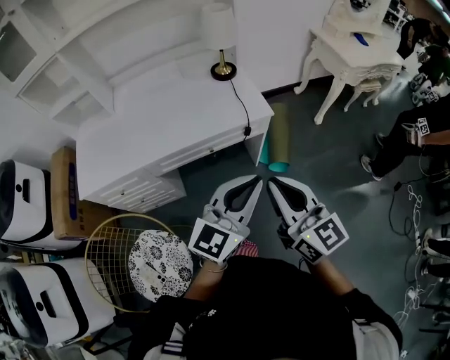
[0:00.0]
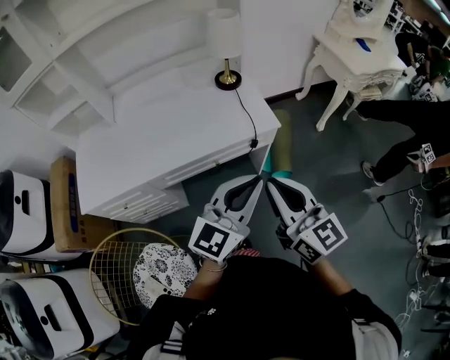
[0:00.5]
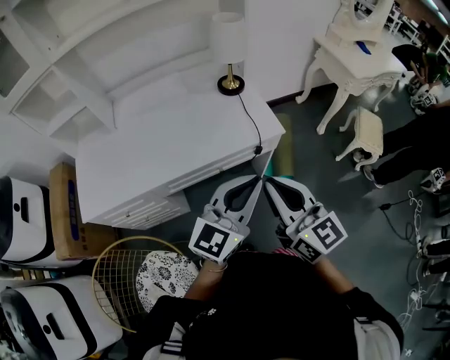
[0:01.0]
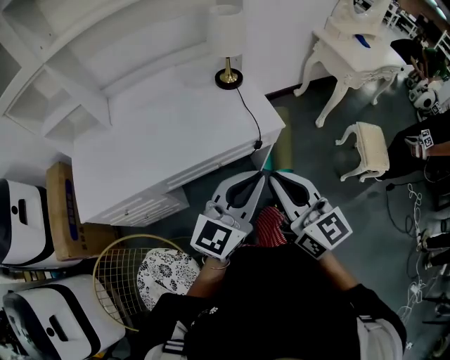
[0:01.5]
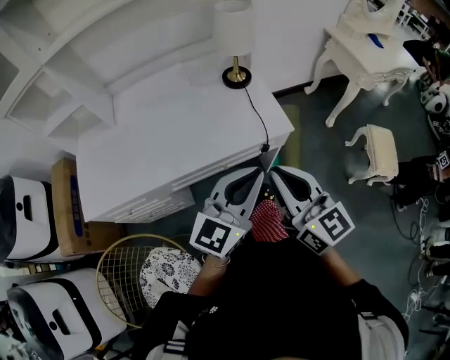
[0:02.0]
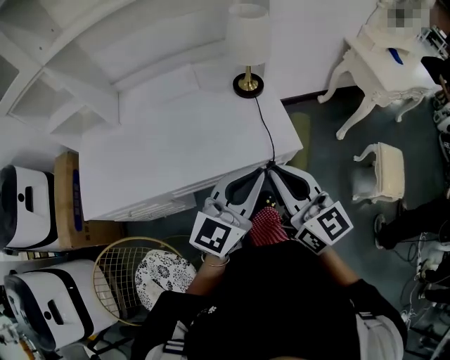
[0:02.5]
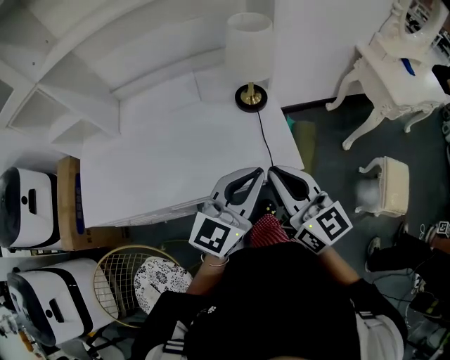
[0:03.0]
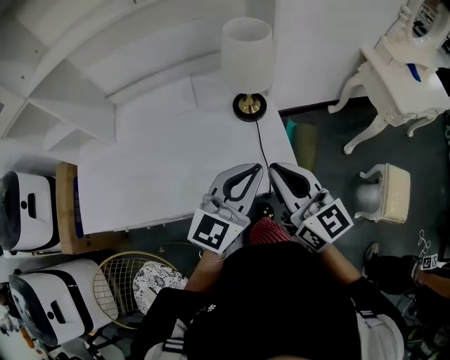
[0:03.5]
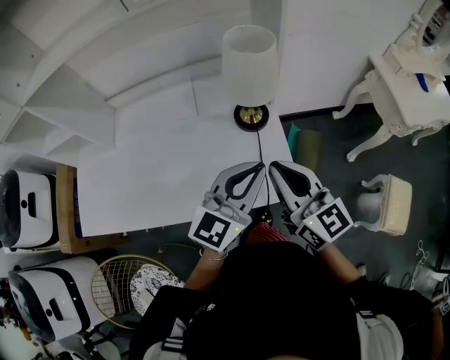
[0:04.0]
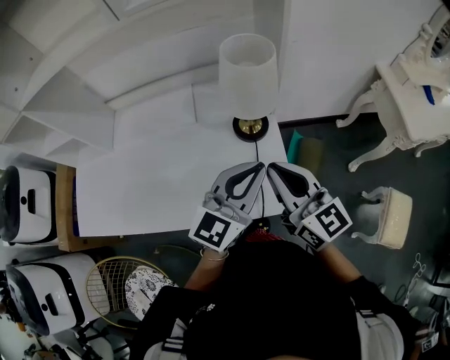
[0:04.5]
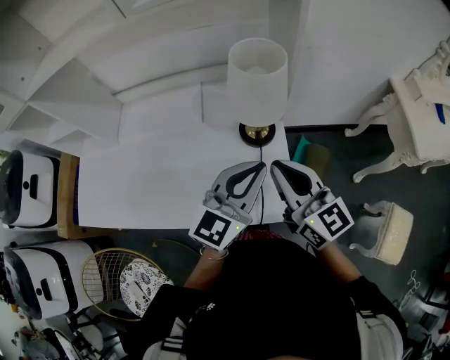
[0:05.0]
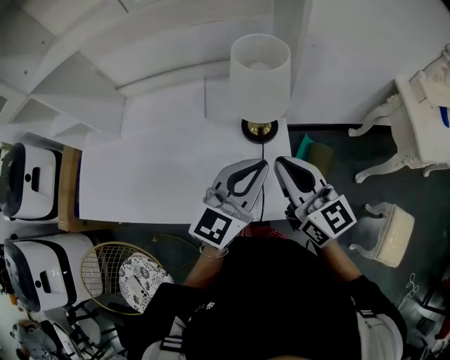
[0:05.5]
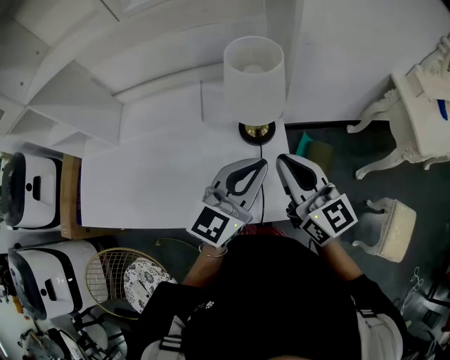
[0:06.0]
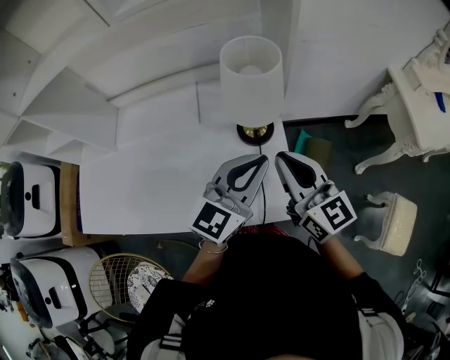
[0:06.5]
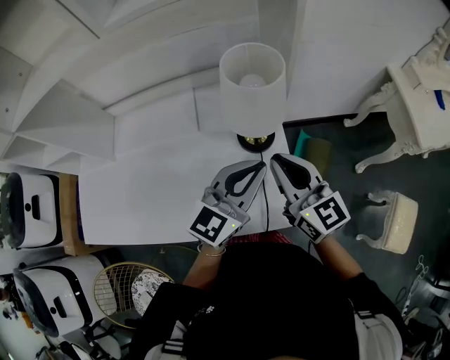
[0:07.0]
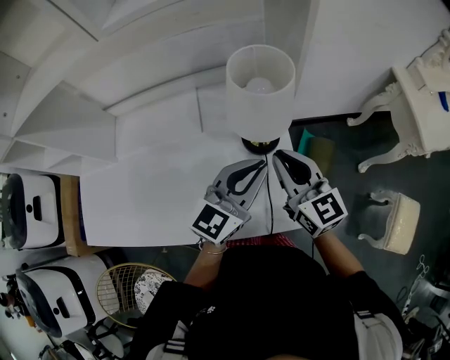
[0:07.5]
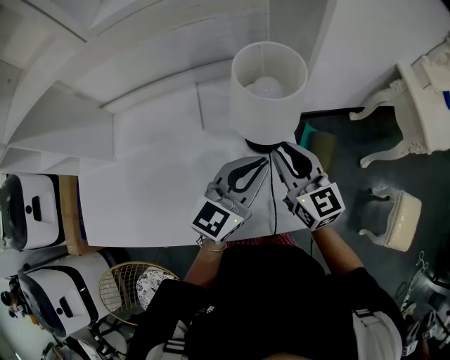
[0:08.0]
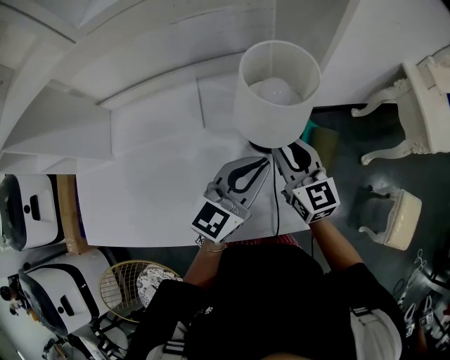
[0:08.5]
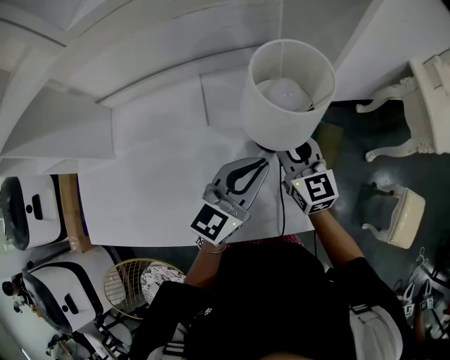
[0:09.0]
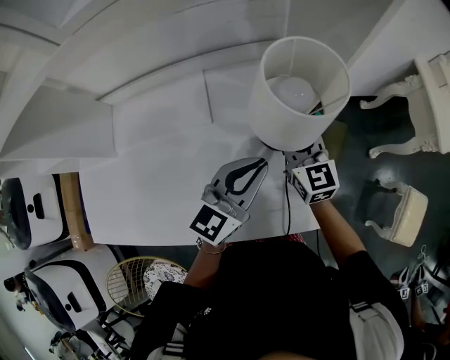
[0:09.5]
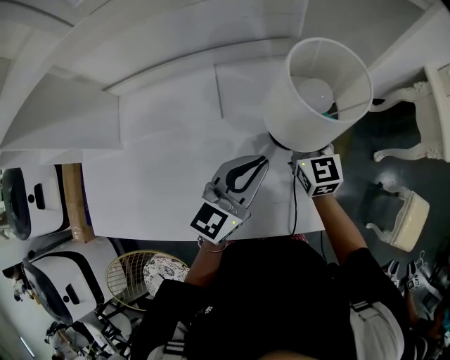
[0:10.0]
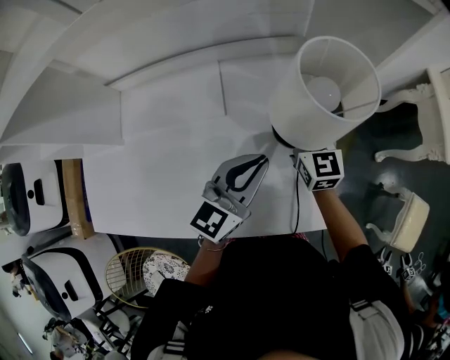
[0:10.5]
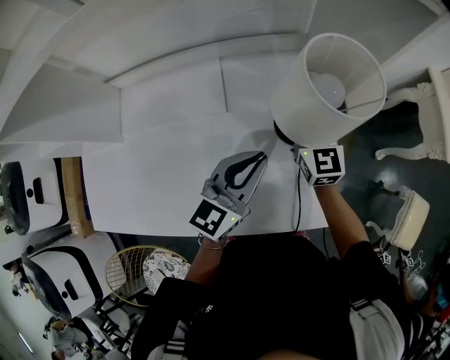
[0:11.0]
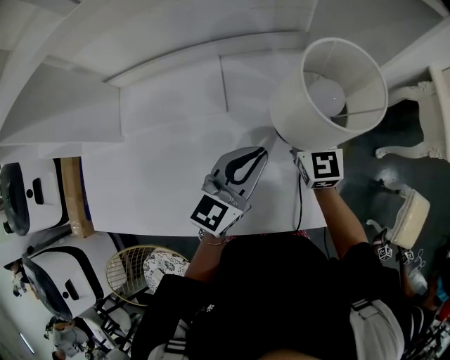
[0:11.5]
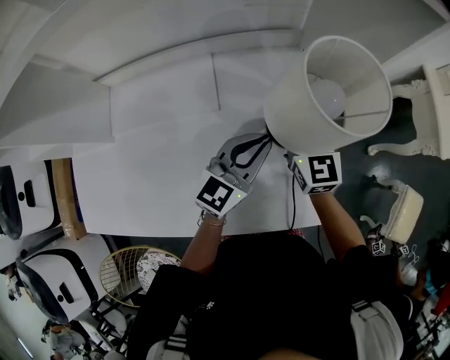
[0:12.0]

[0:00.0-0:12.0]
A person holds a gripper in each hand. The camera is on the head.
0:00.0 to 0:02.0: Both grippers travel together forward and to the left, approximately 15 cm.
0:02.0 to 0:04.0: Both grippers move forward, some 25 cm.
0:04.0 to 0:06.0: The grippers both shift forward by approximately 5 cm.
0:06.0 to 0:08.0: Both grippers travel together forward and downward, approximately 10 cm.
0:08.0 to 0:10.0: The left gripper shifts some 5 cm to the left. The right gripper heads forward and downward, covering some 10 cm.
0:10.0 to 0:12.0: The left gripper ends up about 5 cm from where it was.

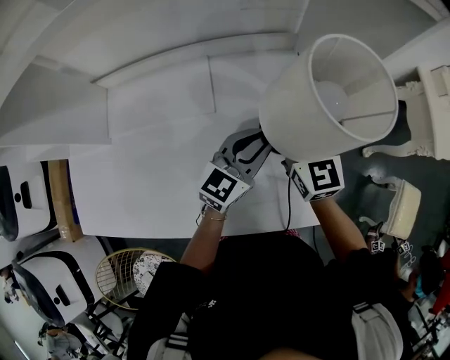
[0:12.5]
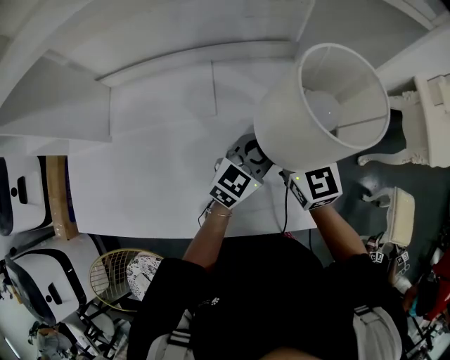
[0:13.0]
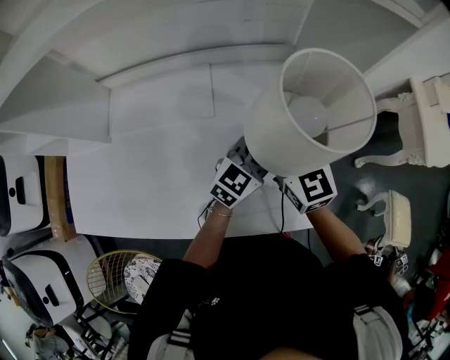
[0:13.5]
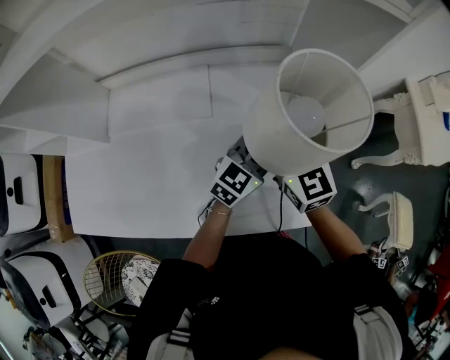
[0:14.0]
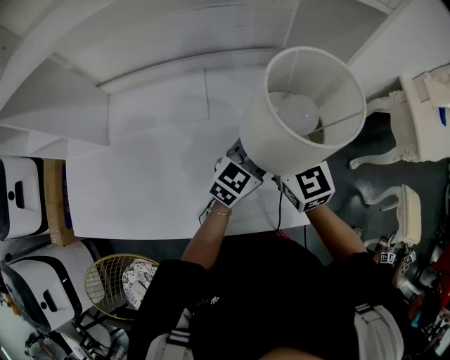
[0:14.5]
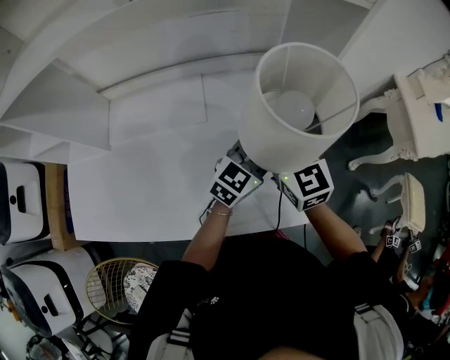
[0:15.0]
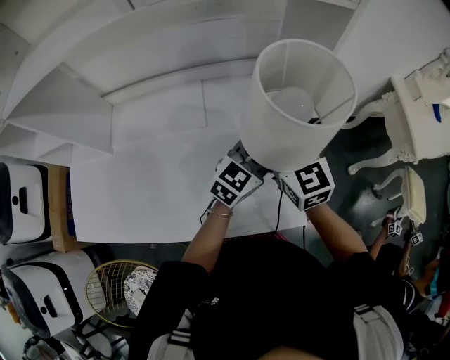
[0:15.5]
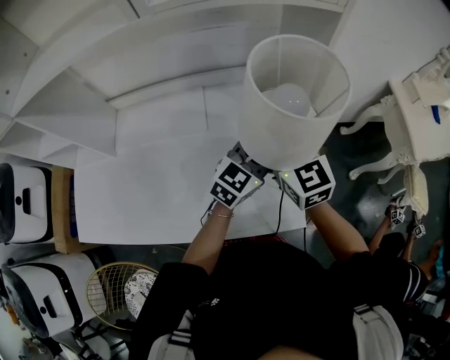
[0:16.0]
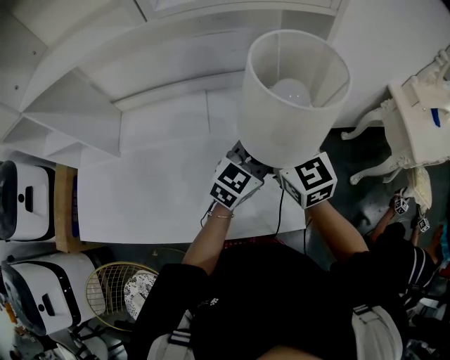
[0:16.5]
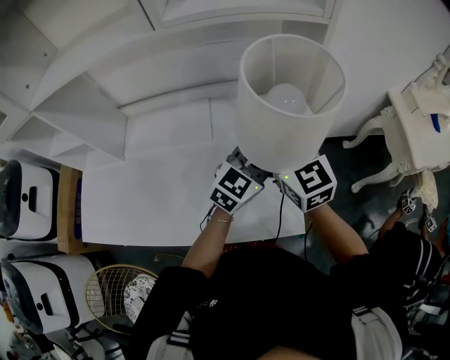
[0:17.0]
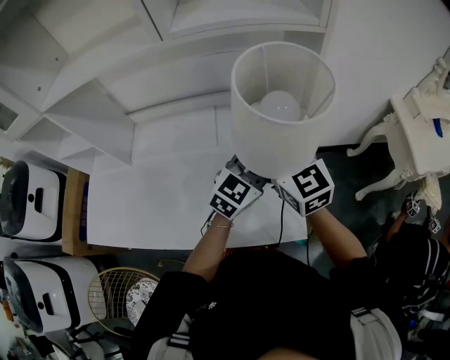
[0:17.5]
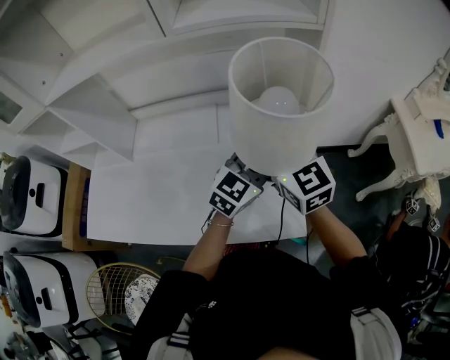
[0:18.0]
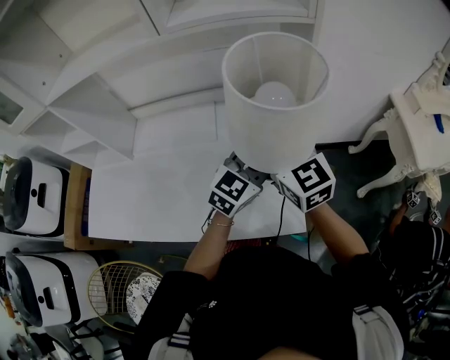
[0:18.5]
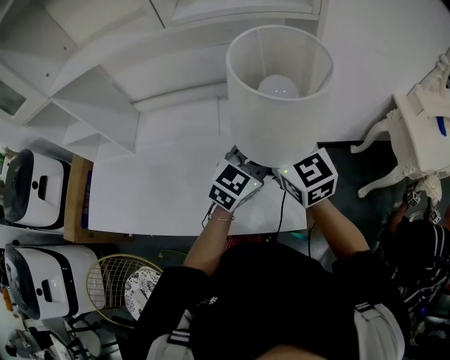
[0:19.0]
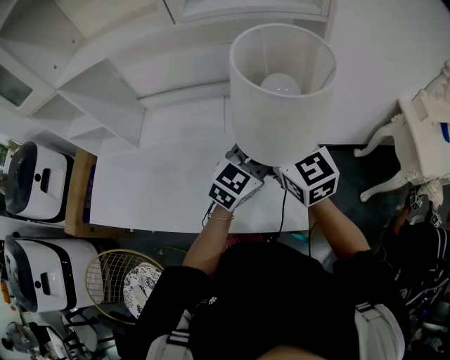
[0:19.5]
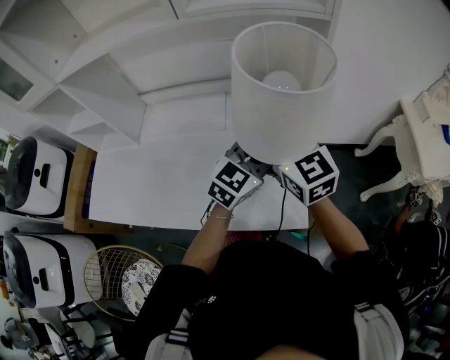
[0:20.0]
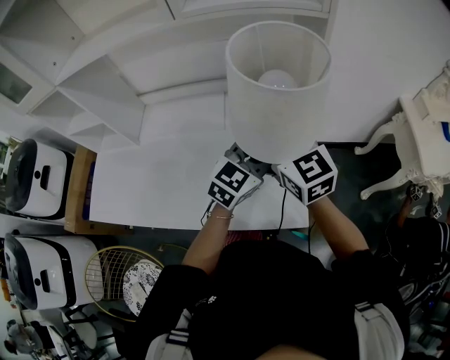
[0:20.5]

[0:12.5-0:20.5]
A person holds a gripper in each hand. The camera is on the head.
0:12.5 to 0:14.5: The left gripper goes roughly 5 cm to the right, while the right gripper moves backward, about 5 cm.
0:14.5 to 0:16.5: Both grippers move upward, approximately 5 cm.
0:16.5 to 0:18.5: The right gripper changes place by some 5 cm.
0:18.5 to 0:20.5: The grippers make only small movements.

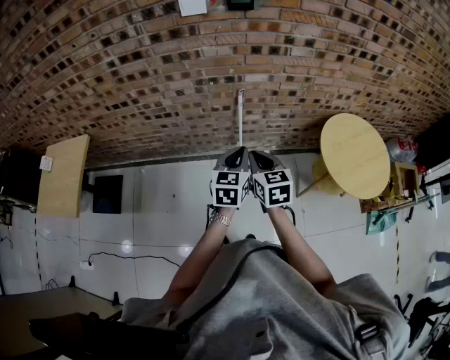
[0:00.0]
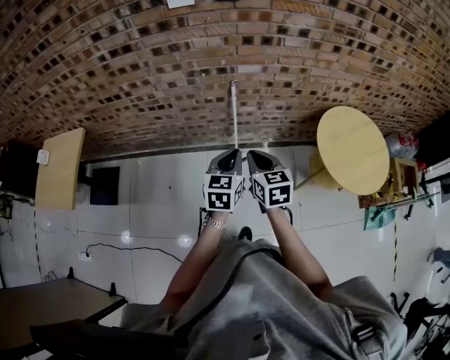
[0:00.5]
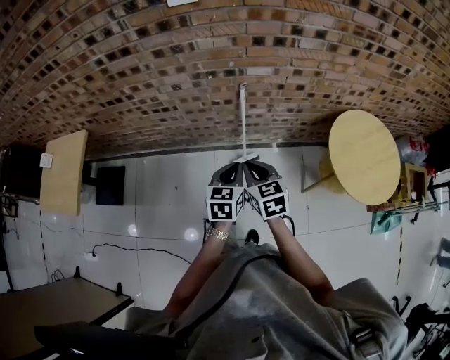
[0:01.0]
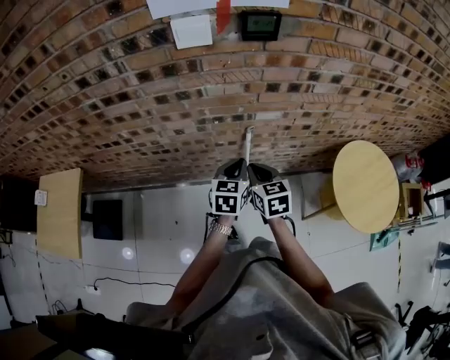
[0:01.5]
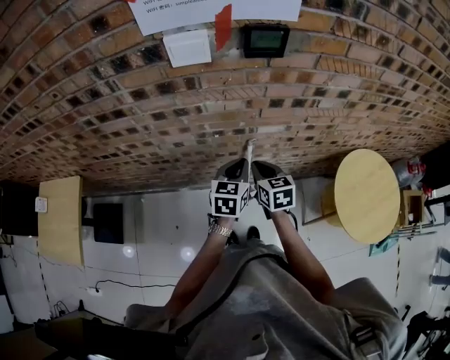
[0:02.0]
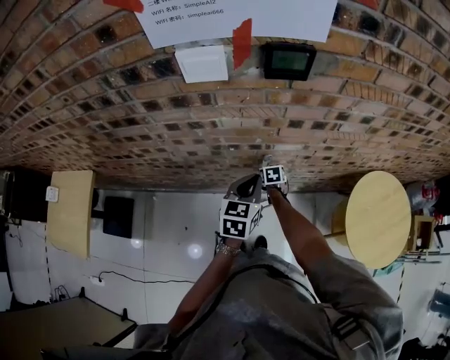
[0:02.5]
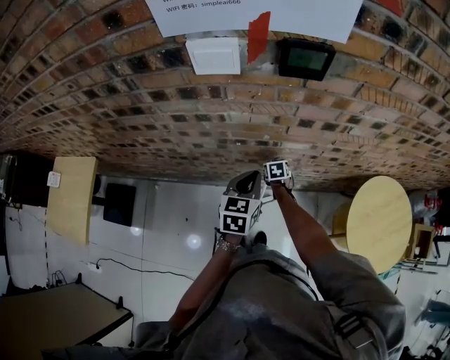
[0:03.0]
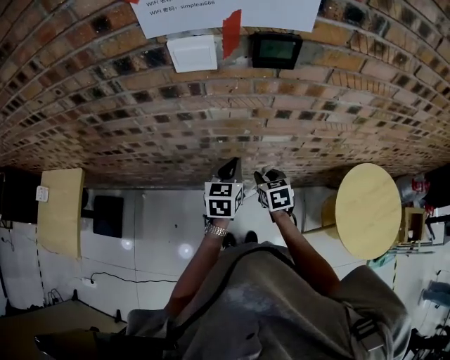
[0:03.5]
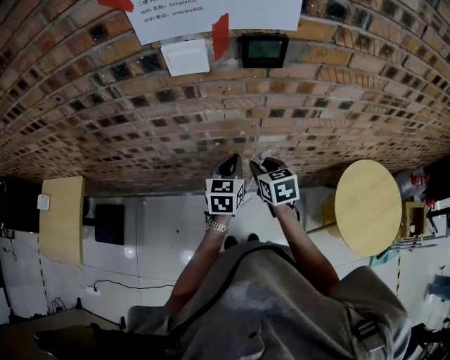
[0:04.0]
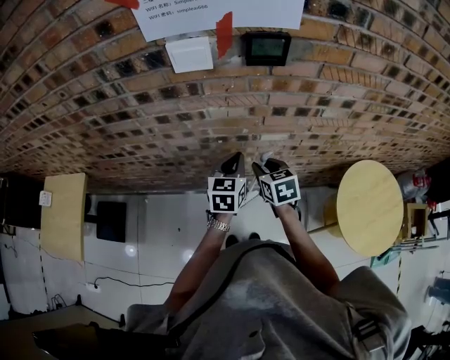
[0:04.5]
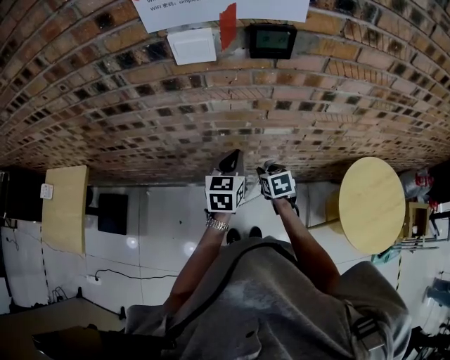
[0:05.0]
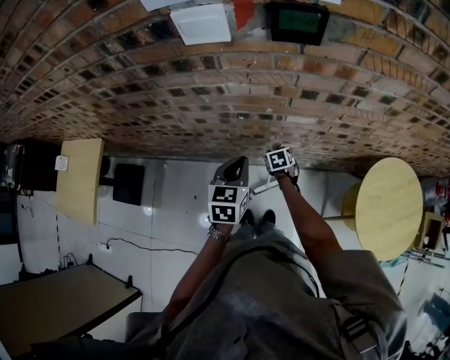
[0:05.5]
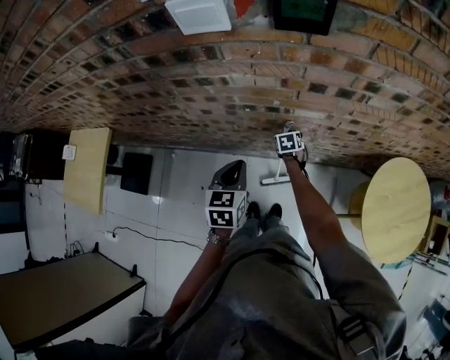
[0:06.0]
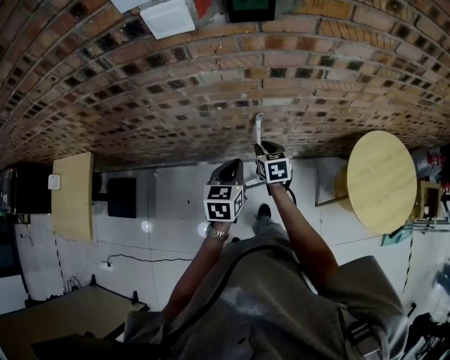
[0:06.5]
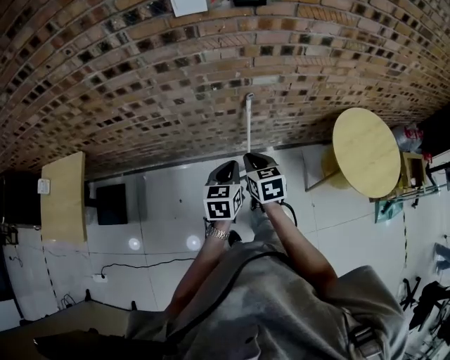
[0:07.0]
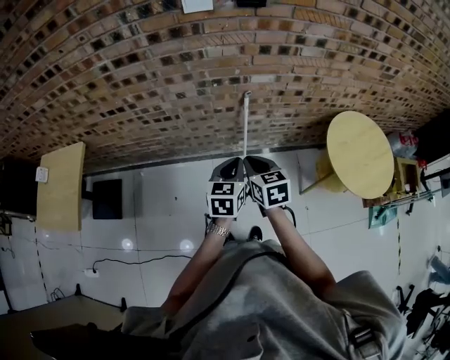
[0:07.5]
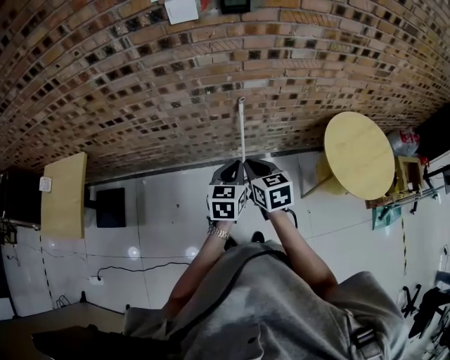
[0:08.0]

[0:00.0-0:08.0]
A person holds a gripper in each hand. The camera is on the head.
0:00.0 to 0:02.0: The two grippers go roughly 30 cm forward.
0:02.0 to 0:04.0: The right gripper reaches about 25 cm downward, then returns, and opens up.
0:04.0 to 0:06.0: The left gripper goes some 10 cm backward, to the left and downward, while the right gripper shifts about 30 cm downward, and swivels approximately 20 degrees.
0:06.0 to 0:08.0: The left gripper goes some 20 cm backward; the right gripper heads backward and upward, covering roughly 50 cm, turns by about 30 degrees, and closes up.
